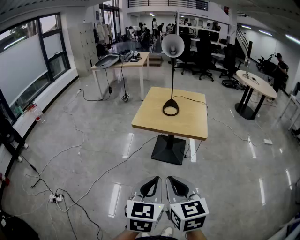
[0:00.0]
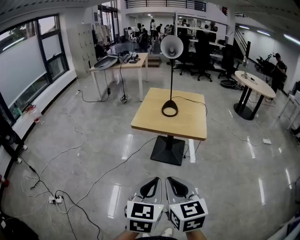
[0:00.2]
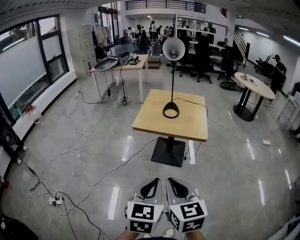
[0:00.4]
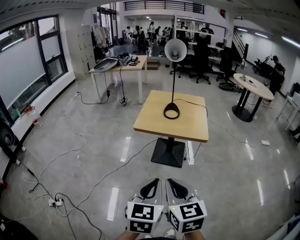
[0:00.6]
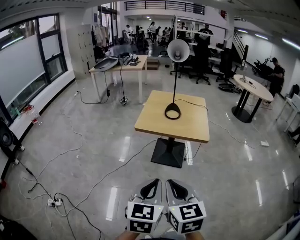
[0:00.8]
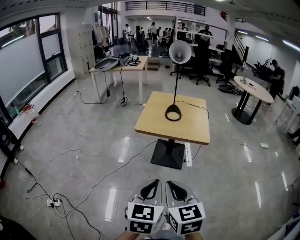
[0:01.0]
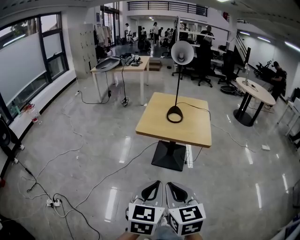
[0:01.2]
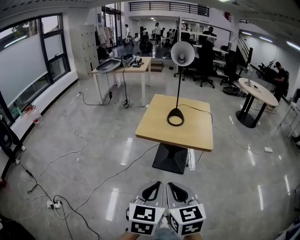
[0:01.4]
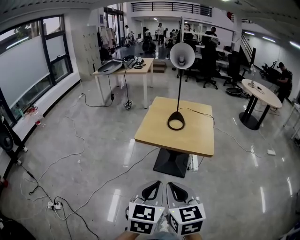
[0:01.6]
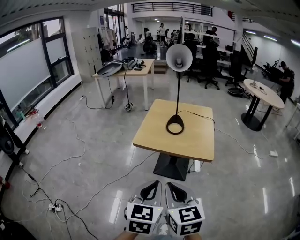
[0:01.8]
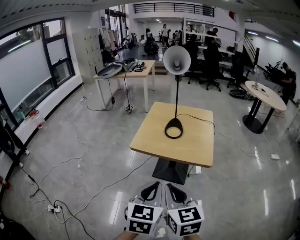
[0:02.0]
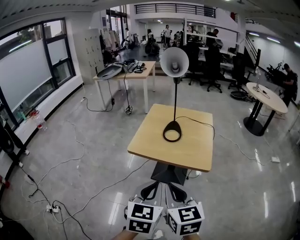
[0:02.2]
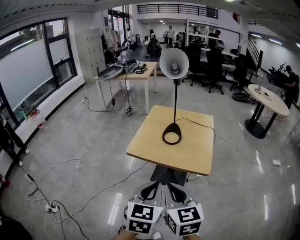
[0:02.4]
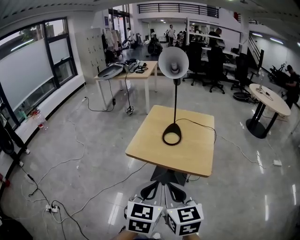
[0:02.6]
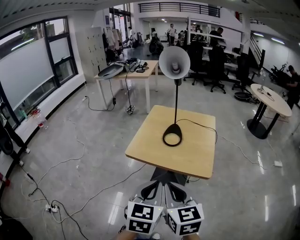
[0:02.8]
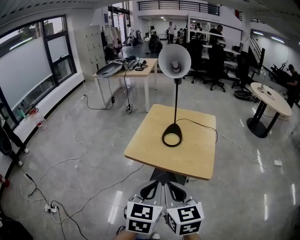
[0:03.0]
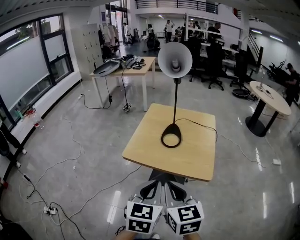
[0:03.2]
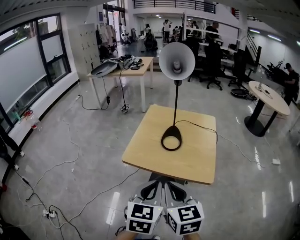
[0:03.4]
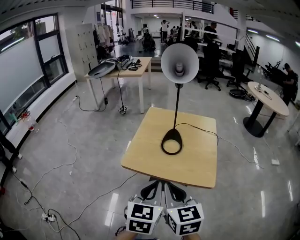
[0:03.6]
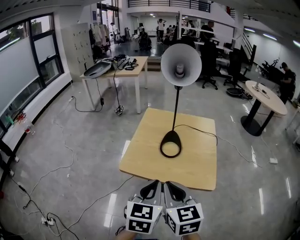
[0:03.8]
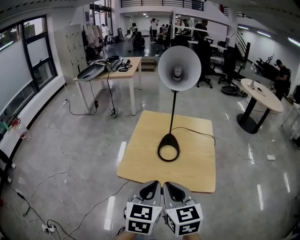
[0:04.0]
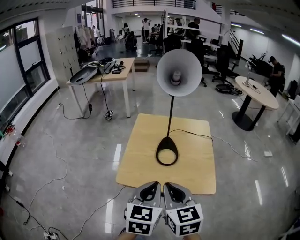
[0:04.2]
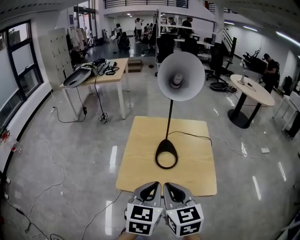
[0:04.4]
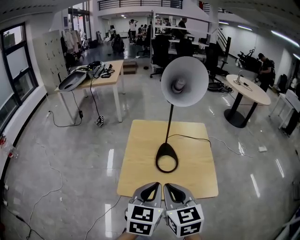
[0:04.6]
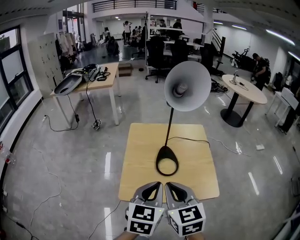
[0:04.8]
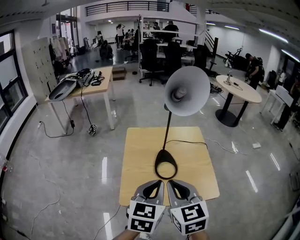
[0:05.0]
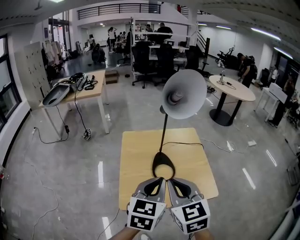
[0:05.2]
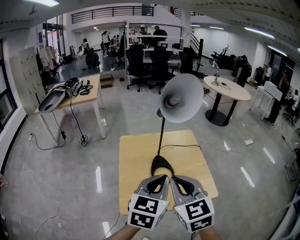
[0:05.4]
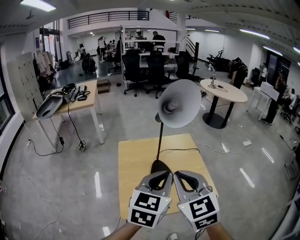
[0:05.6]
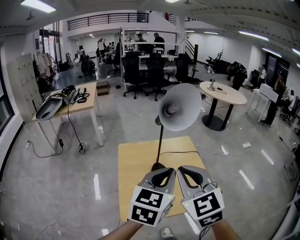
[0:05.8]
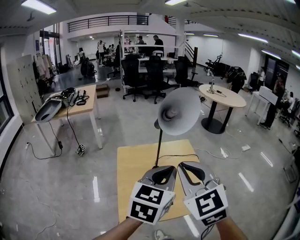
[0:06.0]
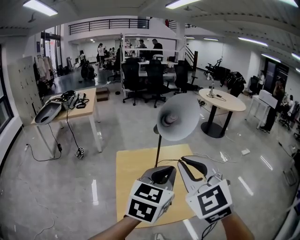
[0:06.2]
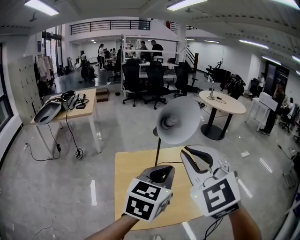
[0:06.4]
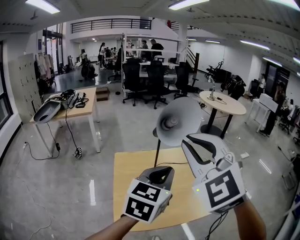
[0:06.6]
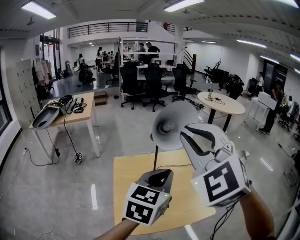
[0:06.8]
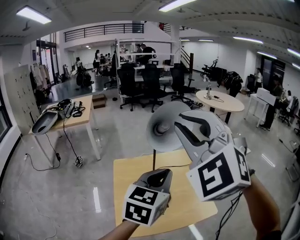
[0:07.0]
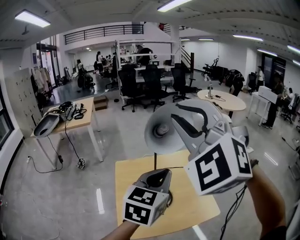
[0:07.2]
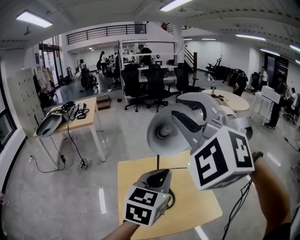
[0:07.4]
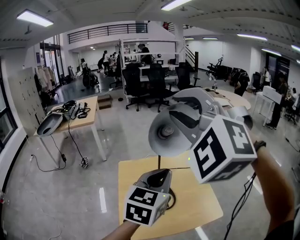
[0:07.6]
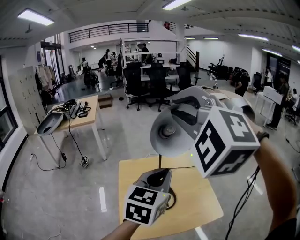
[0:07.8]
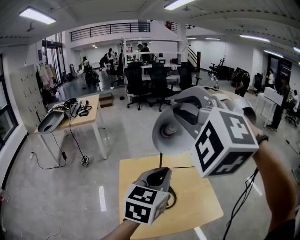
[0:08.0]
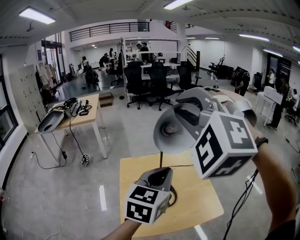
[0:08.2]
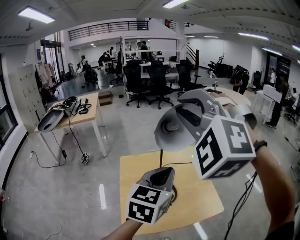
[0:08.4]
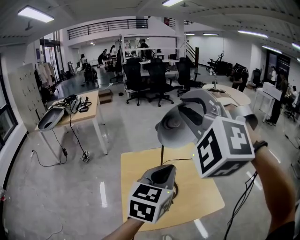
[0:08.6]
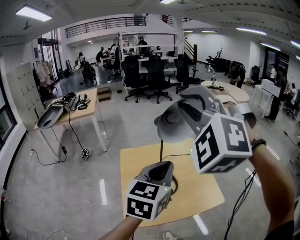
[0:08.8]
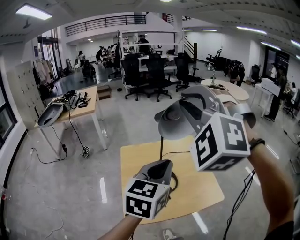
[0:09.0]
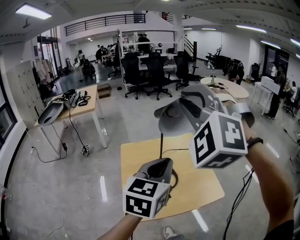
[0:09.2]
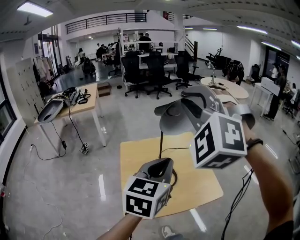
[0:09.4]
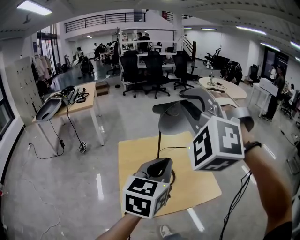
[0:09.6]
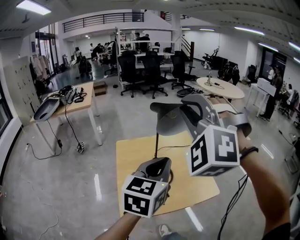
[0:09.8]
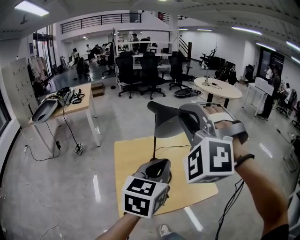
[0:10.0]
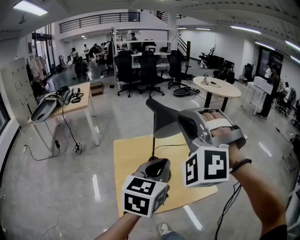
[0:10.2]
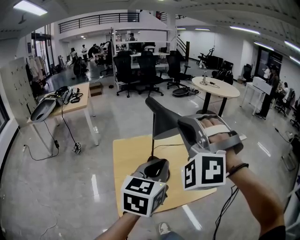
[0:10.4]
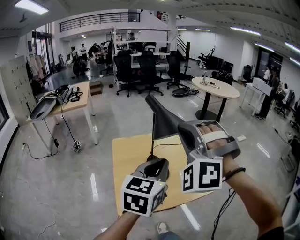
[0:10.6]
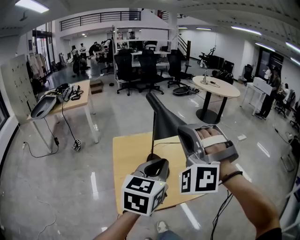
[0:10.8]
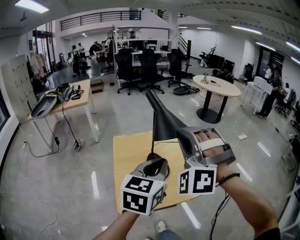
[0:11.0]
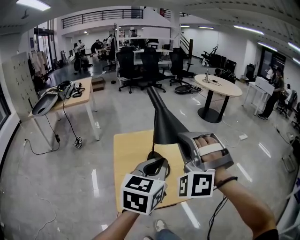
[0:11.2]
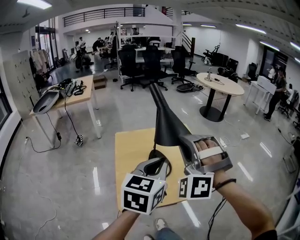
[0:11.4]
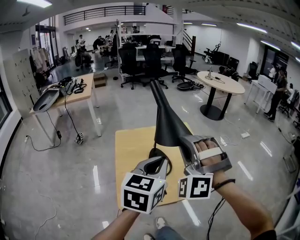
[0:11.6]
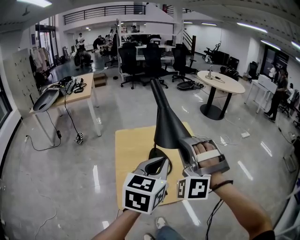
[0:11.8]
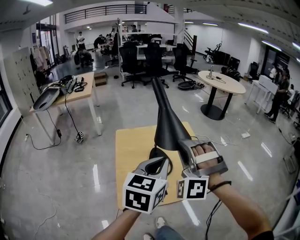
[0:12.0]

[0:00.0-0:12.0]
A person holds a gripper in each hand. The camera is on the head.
0:00.0 to 0:01.6: Both grippers are carried forward, about 50 cm.
0:01.6 to 0:03.0: The pair of grippers is taken forward and to the right, about 1 m.
0:03.0 to 0:04.4: Both grippers are carried forward and to the left, some 1.5 m.
0:04.4 to 0:06.0: The pair of grippers is taken to the left and forward, roughly 50 cm. Both grippers travel together upward, some 30 cm. The right gripper swivels some 30 degrees, while the left gripper swivels about 30 degrees.
0:06.0 to 0:07.6: The left gripper goes about 30 cm forward, while the right gripper travels forward and upward by about 40 cm, rolls counterclockwise, seen from behind, by approximately 50 degrees, and opens its fingers.
0:07.6 to 0:09.0: The grippers both shift backward and downward by about 30 cm.
0:09.0 to 0:10.4: Both grippers move backward and downward, roughly 30 cm.
0:10.4 to 0:12.0: The right gripper is displaced downward and forward by some 20 cm; the left gripper is displaced forward and downward by roughly 10 cm.

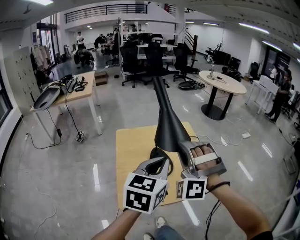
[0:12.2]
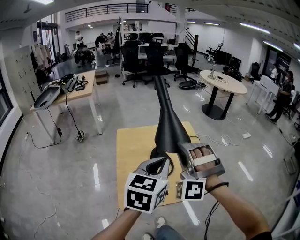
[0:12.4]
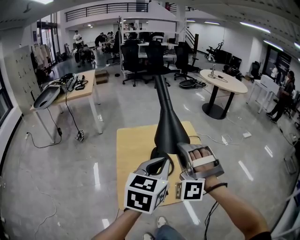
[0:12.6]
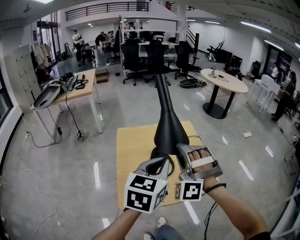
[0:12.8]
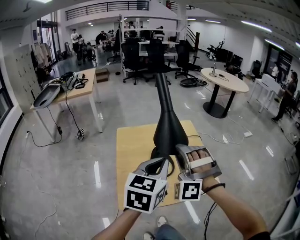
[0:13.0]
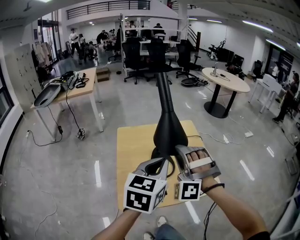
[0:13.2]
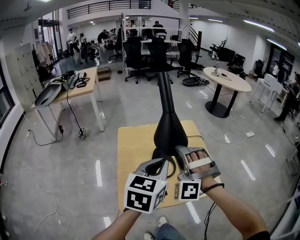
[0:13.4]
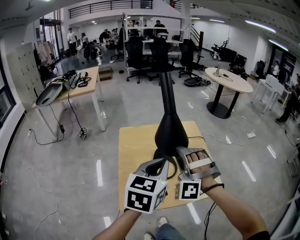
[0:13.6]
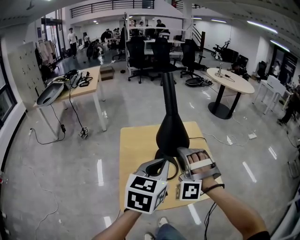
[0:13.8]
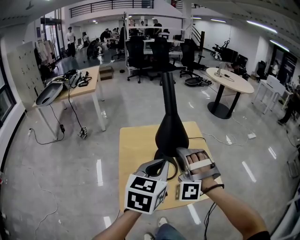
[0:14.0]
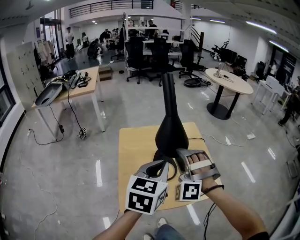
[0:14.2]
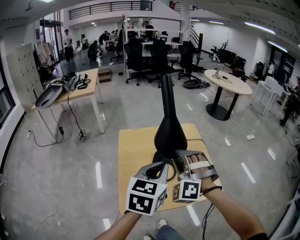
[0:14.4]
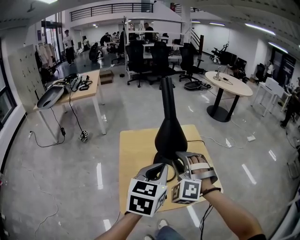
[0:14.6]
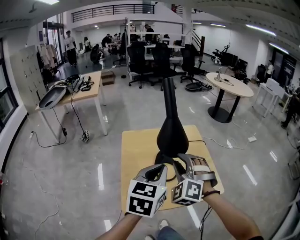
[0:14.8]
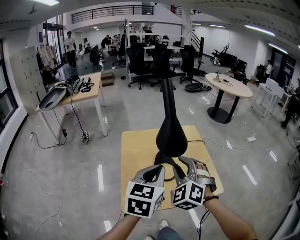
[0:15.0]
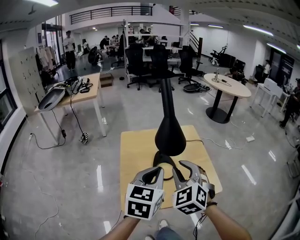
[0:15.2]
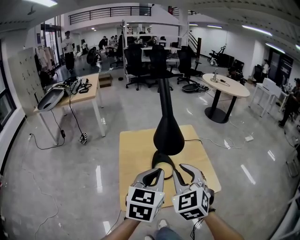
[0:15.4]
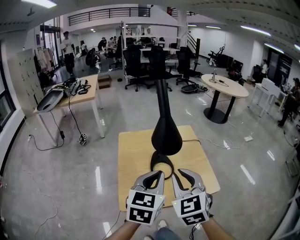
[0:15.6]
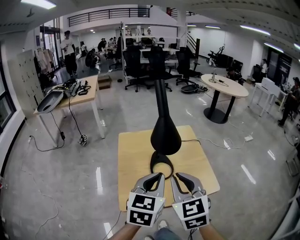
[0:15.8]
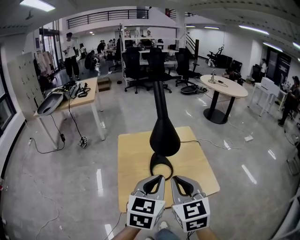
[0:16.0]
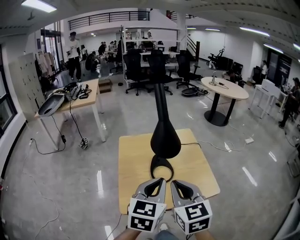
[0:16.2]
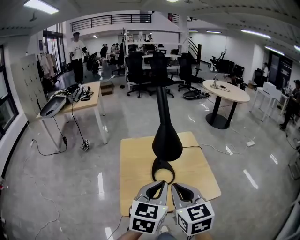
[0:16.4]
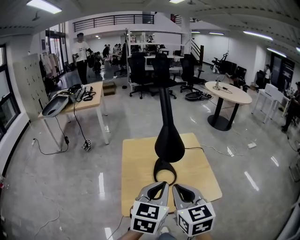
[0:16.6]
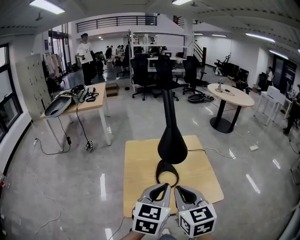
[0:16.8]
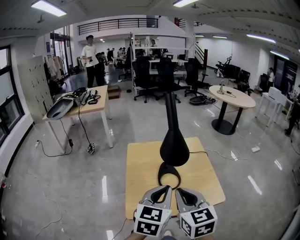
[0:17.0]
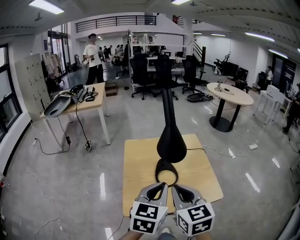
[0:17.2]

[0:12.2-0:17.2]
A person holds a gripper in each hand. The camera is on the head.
0:12.2 to 0:13.8: The left gripper heads forward and to the left, covering roughly 40 cm. Meanwhile the right gripper moves forward, to the left and downward, approximately 40 cm.
0:13.8 to 0:15.6: Both grippers move backward, some 35 cm. The right gripper rolls clockwise, seen from behind, by approximately 70 degrees.
0:15.6 to 0:17.2: The two grippers go roughly 10 cm backward and upward. The right gripper changes its angle by about 20 degrees.

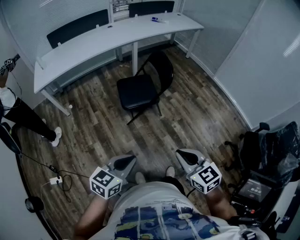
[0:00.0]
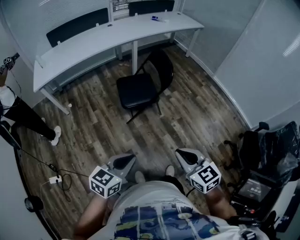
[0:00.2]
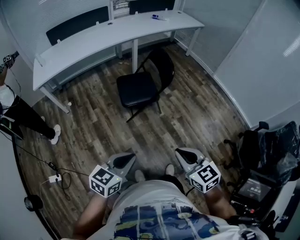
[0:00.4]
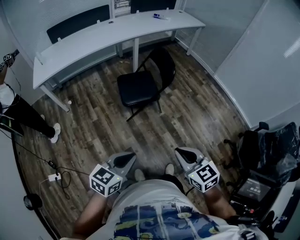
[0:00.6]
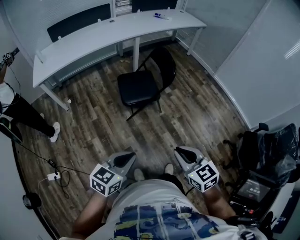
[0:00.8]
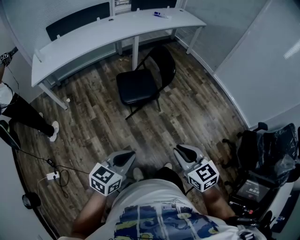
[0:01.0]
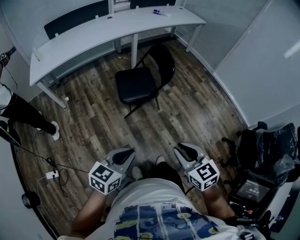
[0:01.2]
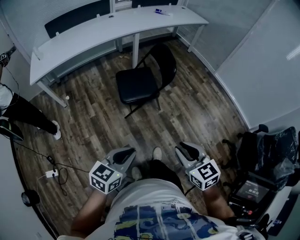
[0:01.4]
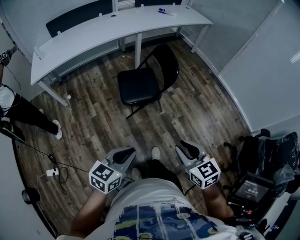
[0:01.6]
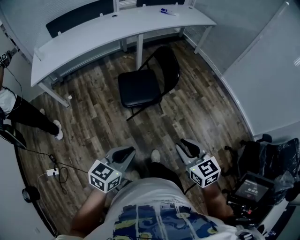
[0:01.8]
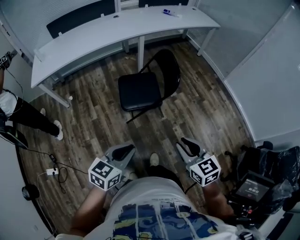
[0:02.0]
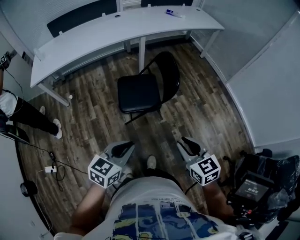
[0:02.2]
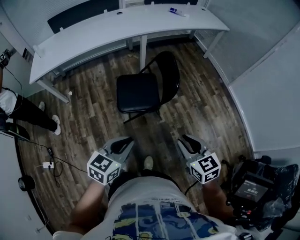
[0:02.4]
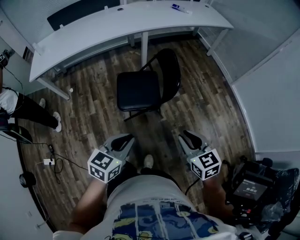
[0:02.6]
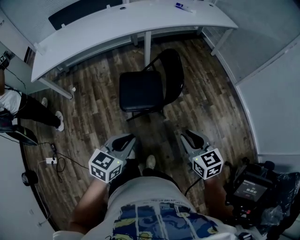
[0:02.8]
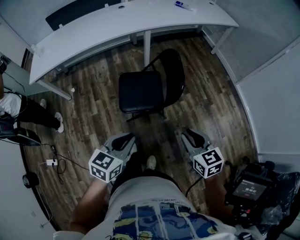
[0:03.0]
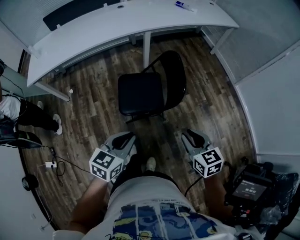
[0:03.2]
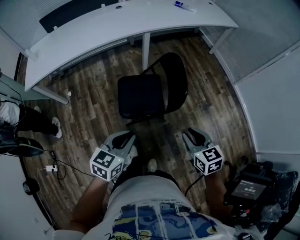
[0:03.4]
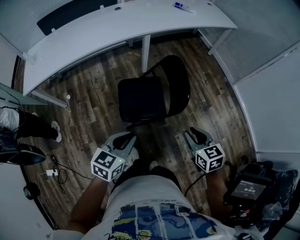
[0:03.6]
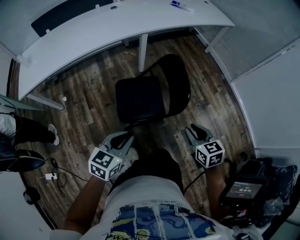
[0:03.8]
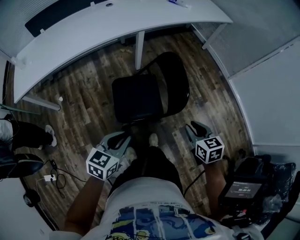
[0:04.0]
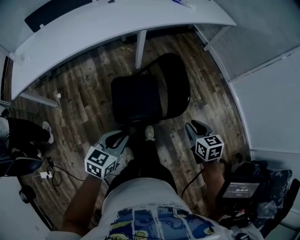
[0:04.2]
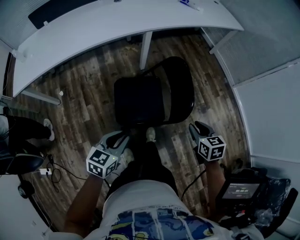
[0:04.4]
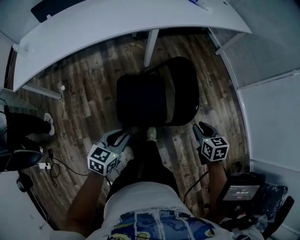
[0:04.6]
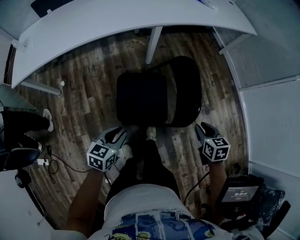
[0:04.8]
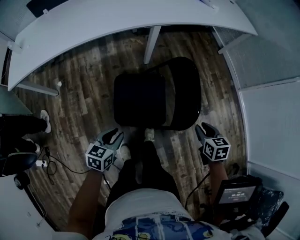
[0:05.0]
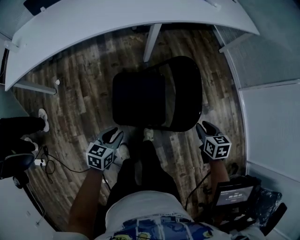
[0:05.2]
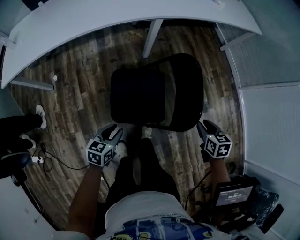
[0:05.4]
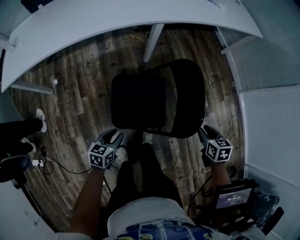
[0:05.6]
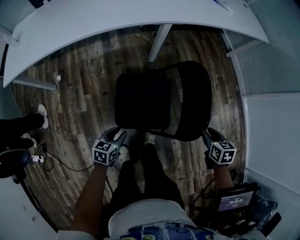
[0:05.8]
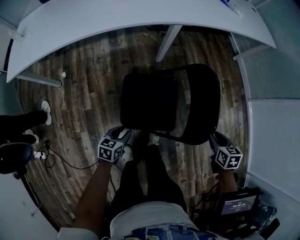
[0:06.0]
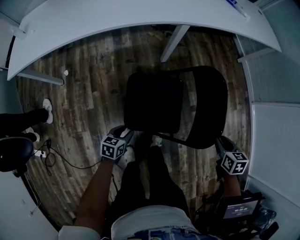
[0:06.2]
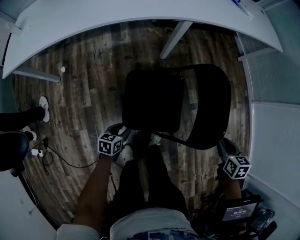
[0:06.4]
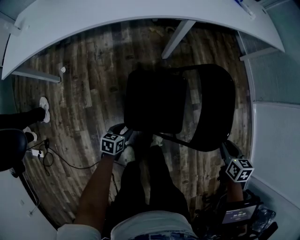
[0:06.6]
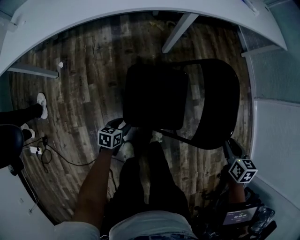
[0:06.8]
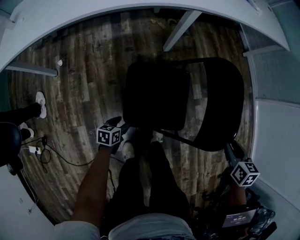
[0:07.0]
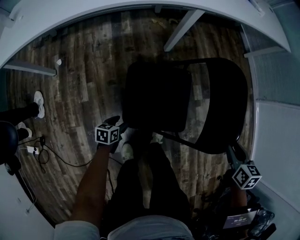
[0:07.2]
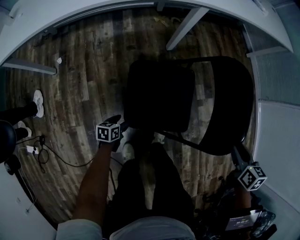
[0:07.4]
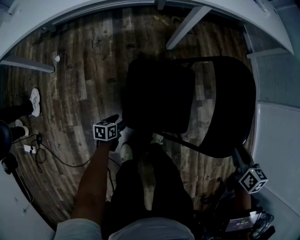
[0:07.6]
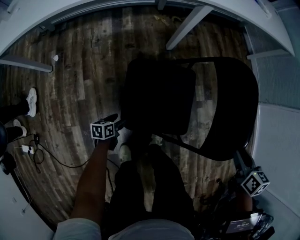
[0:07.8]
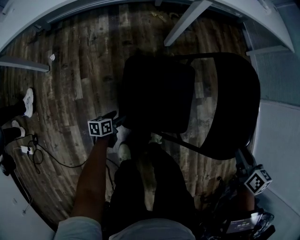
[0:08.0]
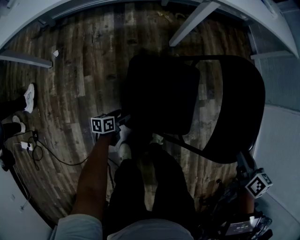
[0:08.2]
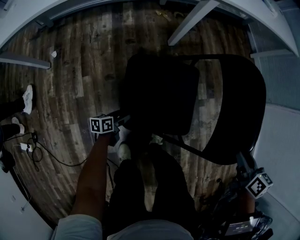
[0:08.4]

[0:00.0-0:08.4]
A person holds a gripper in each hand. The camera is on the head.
0:00.0 to 0:01.4: There are only small adjustments of the grippers.
0:01.4 to 0:02.8: Both grippers travel together forward, approximately 25 cm.
0:02.8 to 0:04.2: The right gripper shifts roughly 20 cm forward and downward, while the left gripper is displaced forward, to the left and downward by about 20 cm.
0:04.2 to 0:05.6: The right gripper heads forward and downward, covering about 20 cm. Meanwhile the left gripper travels downward and forward by approximately 20 cm, and swivels about 20 degrees.
0:05.6 to 0:07.0: The left gripper is displaced downward by about 20 cm.
0:07.0 to 0:08.4: The left gripper moves downward, roughly 10 cm, and swivels roughly 20 degrees.
